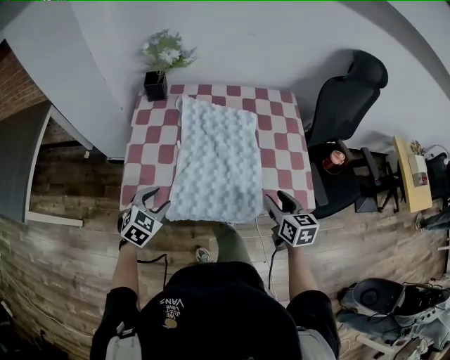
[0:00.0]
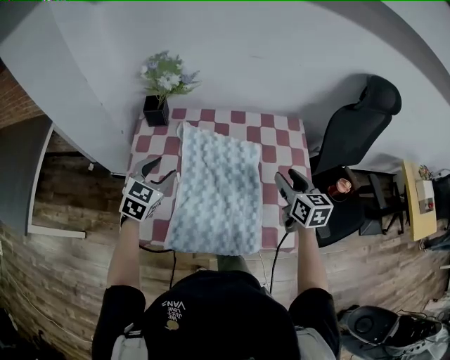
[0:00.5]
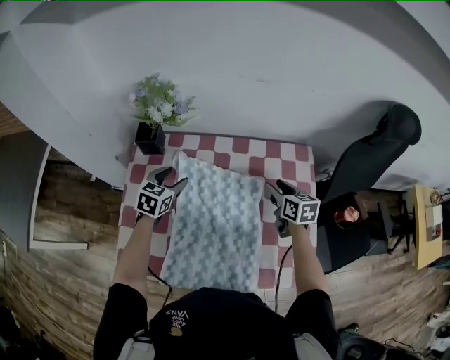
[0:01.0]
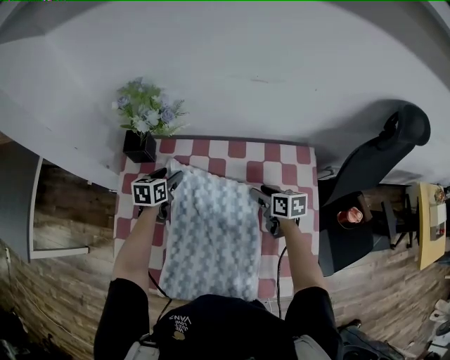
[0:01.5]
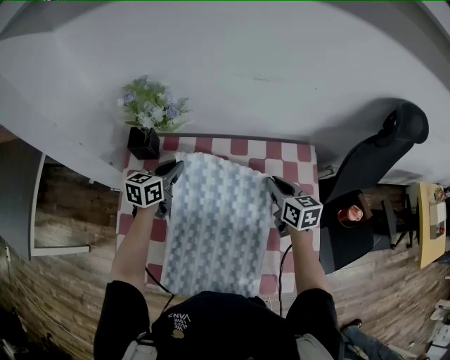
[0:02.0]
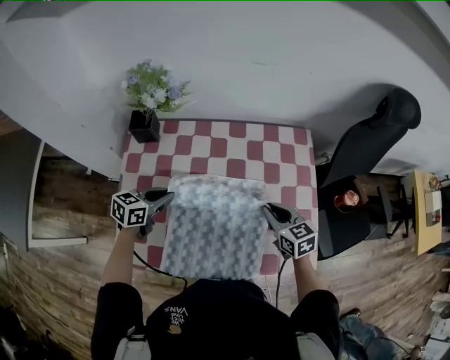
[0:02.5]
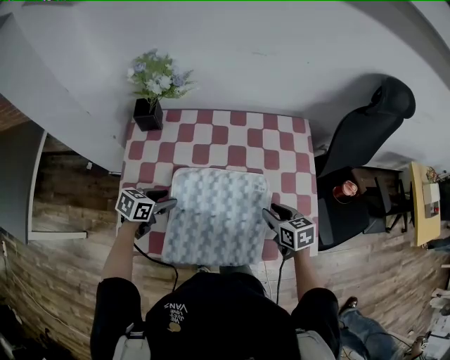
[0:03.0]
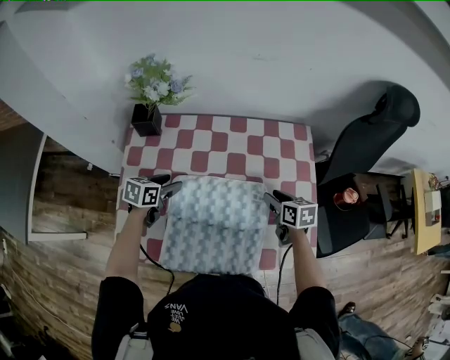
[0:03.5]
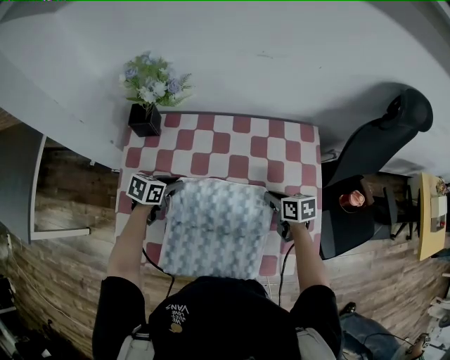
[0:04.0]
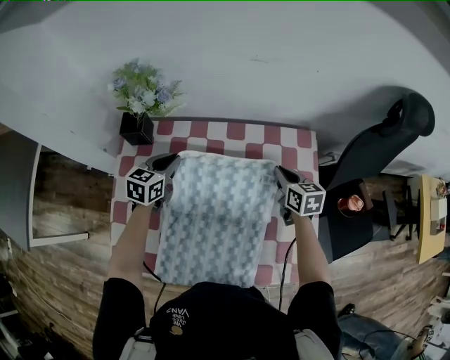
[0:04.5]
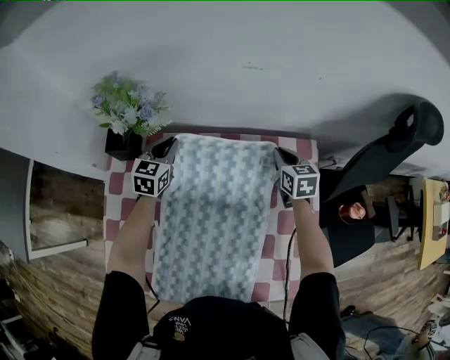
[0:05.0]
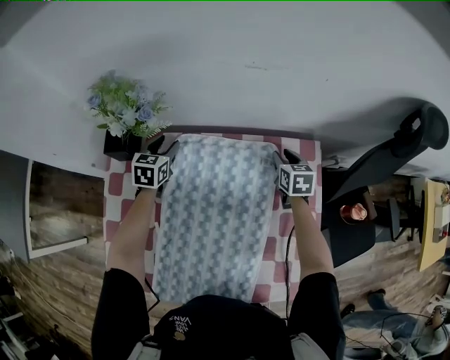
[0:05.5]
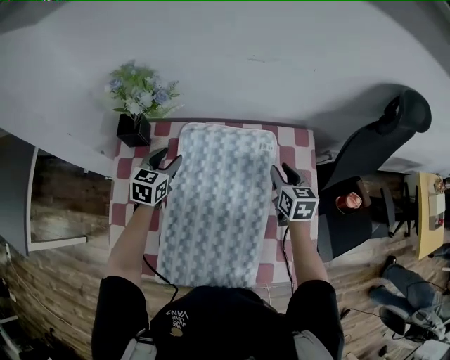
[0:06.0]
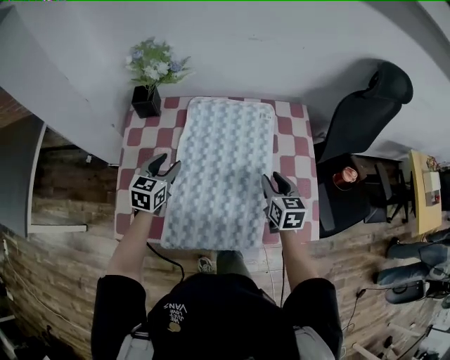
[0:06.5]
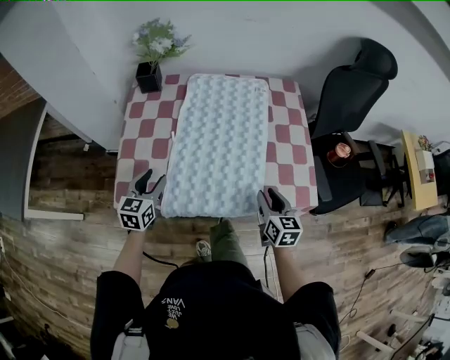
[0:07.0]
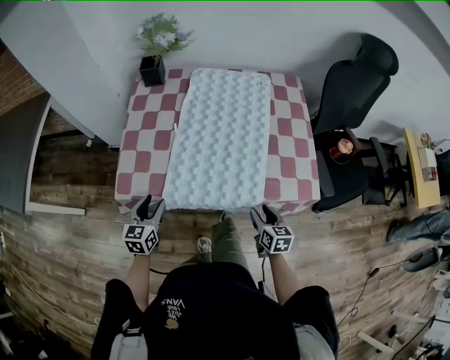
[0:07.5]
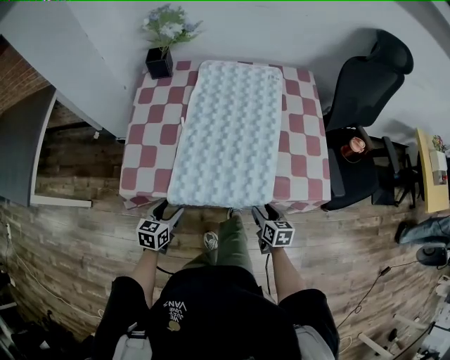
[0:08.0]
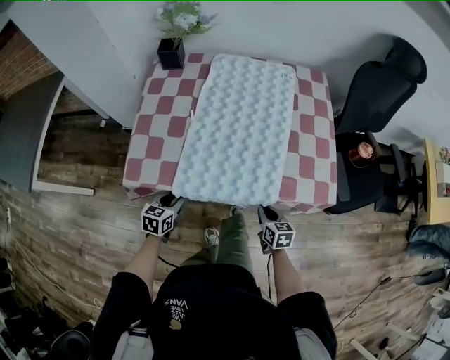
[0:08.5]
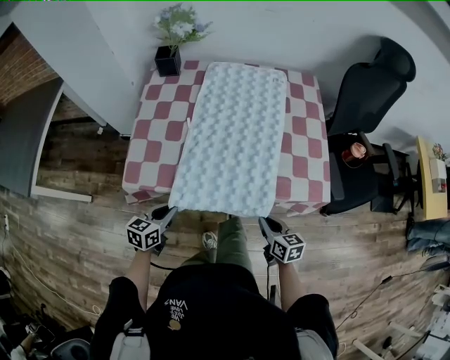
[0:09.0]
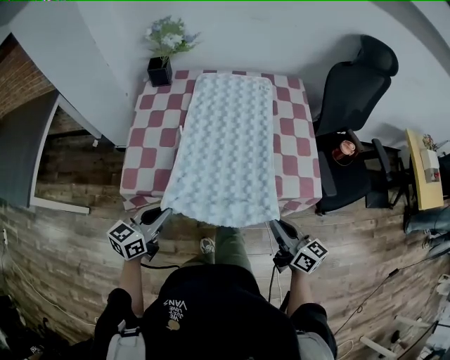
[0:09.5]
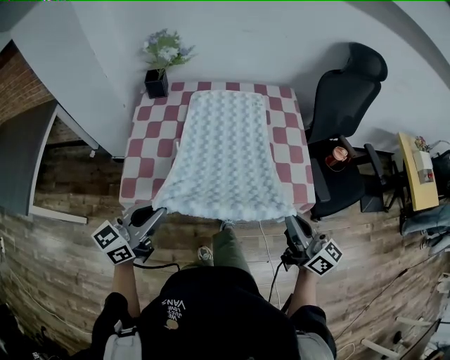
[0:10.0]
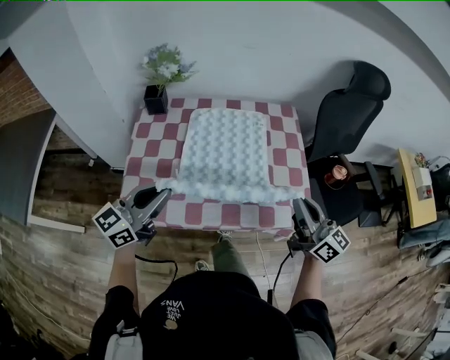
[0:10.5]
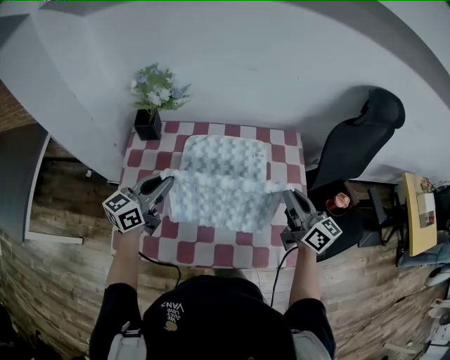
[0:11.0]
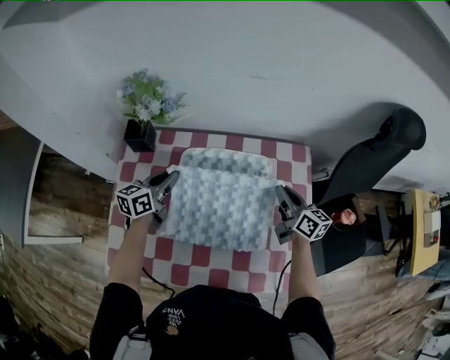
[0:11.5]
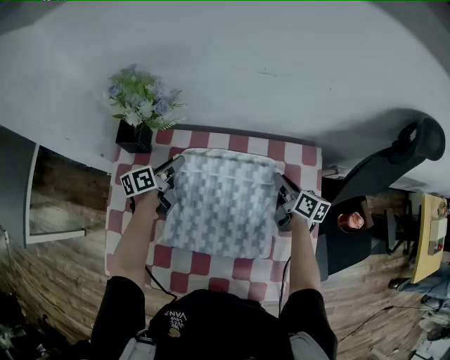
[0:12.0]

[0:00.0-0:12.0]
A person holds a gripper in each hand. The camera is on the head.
0:00.0 to 0:02.0: The two grippers go some 40 cm forward. The right gripper closes up. The left gripper rotates about 40 degrees, and closes its fingers.
0:02.0 to 0:04.0: The left gripper shifts roughly 15 cm backward and downward, and turns by approximately 30 degrees, while the right gripper heads downward and backward, covering approximately 15 cm, and rotates approximately 30 degrees.
0:04.0 to 0:06.0: Both grippers travel together forward and upward, roughly 15 cm. The right gripper rotates approximately 30 degrees, while the left gripper changes its angle by roughly 30 degrees.
0:06.0 to 0:08.0: Both grippers are carried backward, some 40 cm. The right gripper travels downward by some 20 cm.
0:08.0 to 0:10.0: Both grippers move upward, some 30 cm. The right gripper tilts its fingers some 50 degrees upward, and closes up. Meanwhile the left gripper points its fingers roughly 40 degrees further upward, and closes up.
0:10.0 to 0:12.0: Both grippers are carried forward, about 50 cm. The left gripper rotates approximately 50 degrees, and opens. The right gripper turns by about 30 degrees.

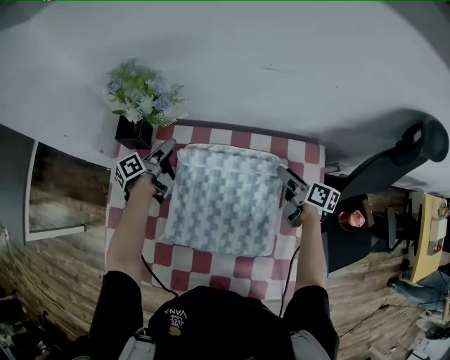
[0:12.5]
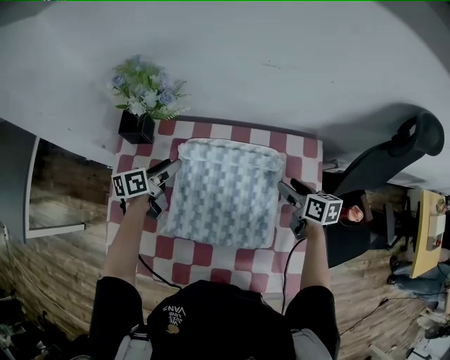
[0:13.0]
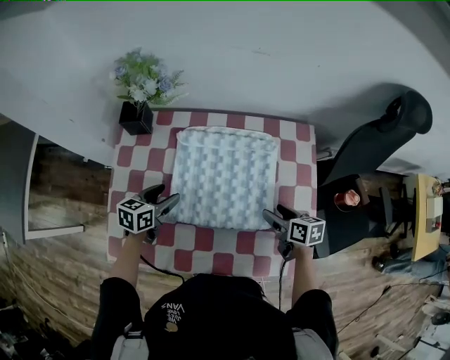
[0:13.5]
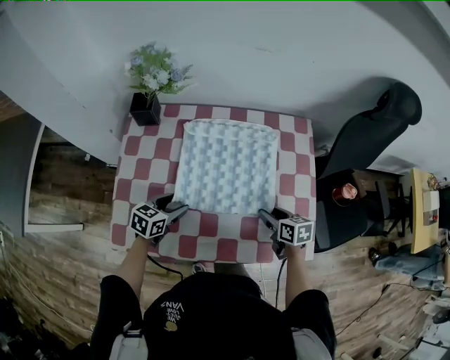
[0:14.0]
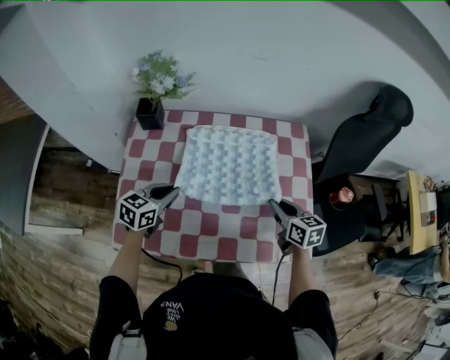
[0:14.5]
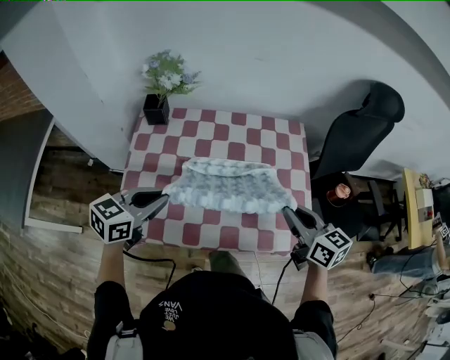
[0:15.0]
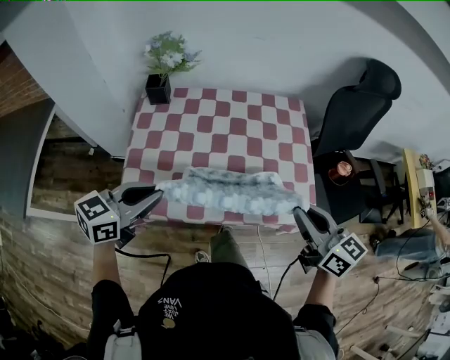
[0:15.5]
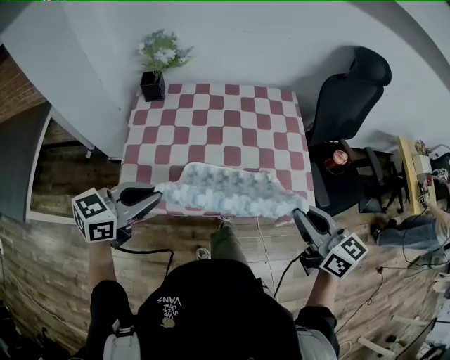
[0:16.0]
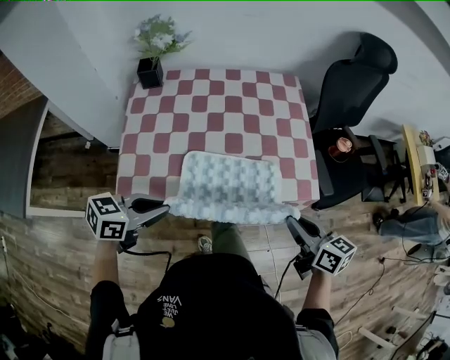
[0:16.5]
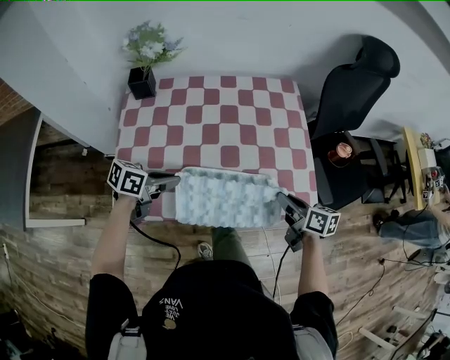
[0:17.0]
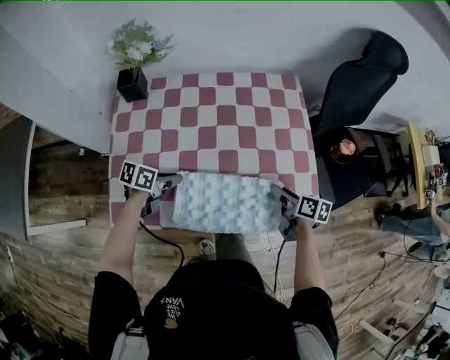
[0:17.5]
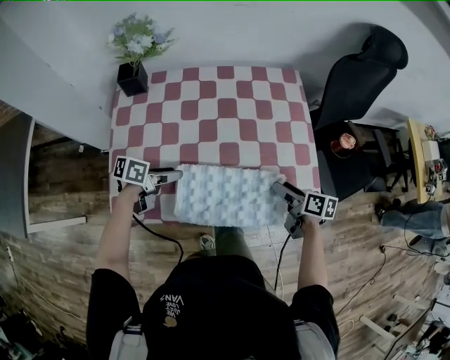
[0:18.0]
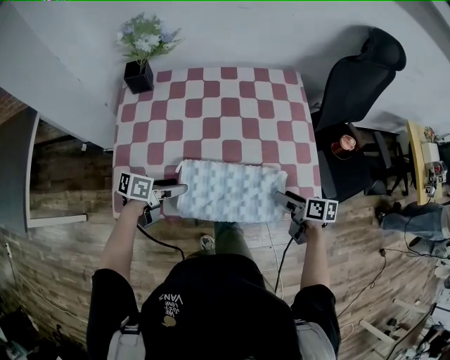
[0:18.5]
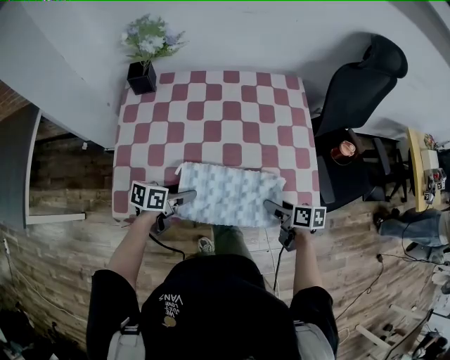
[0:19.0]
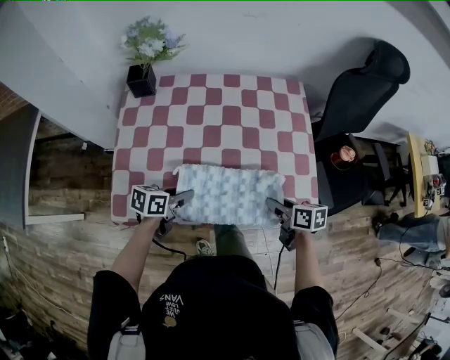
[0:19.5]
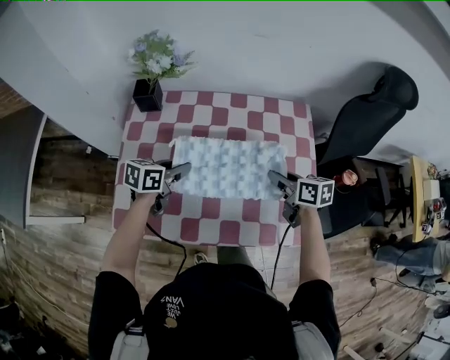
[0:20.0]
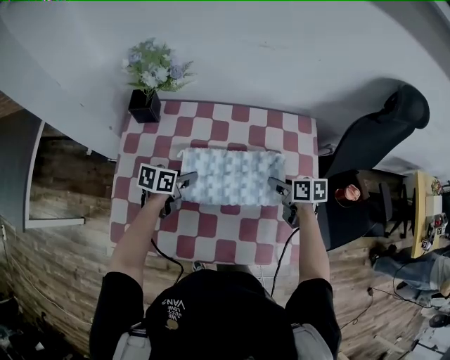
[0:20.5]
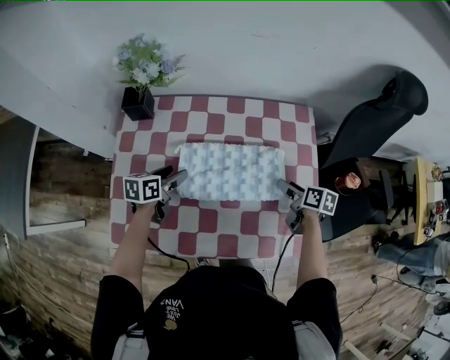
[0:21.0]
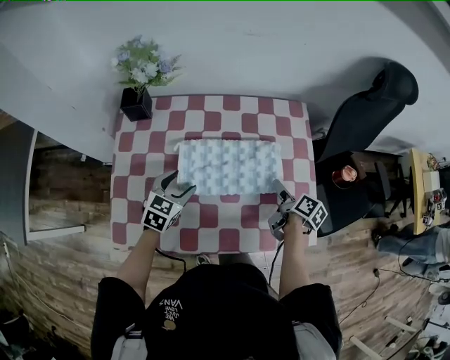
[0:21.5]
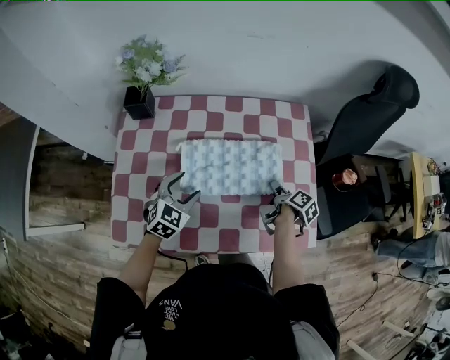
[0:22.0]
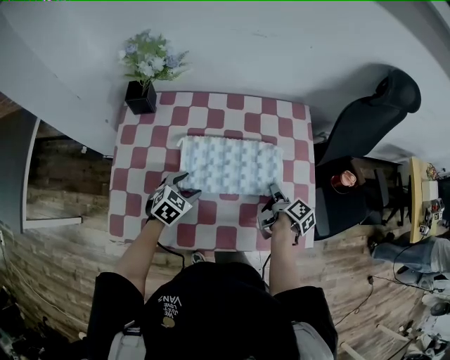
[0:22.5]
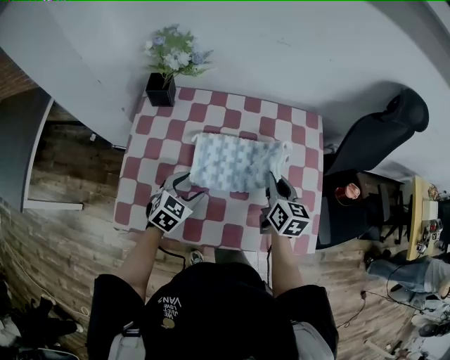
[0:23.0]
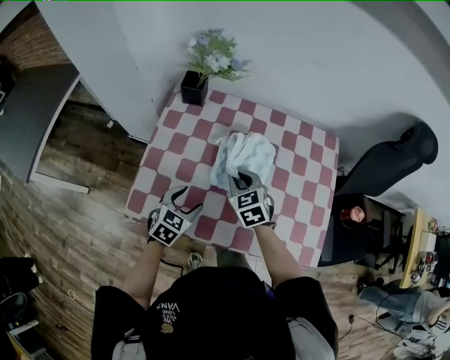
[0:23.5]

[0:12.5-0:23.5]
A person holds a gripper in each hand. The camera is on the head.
0:12.5 to 0:14.5: Both grippers travel together backward, about 25 cm. The right gripper rotates about 30 degrees, and closes. Meanwhile the left gripper rotates around the line of its fingers by roughly 70 degrees, clockwise from behind, and closes.
0:14.5 to 0:16.0: Both grippers move backward and upward, roughly 30 cm.
0:16.0 to 0:18.0: The two grippers go some 30 cm downward and forward. The right gripper rotates roughly 40 degrees, and opens, while the left gripper rolls counterclockwise, seen from behind, by roughly 40 degrees, and opens its fingers.
0:18.0 to 0:20.0: The right gripper shifts roughly 15 cm forward, to the left and upward, swivels approximately 20 degrees, and closes its fingers. The left gripper shifts about 10 cm forward and upward, rotates roughly 30 degrees, and closes up.
0:20.0 to 0:21.5: The right gripper travels downward and to the right by about 10 cm, rolls clockwise, seen from behind, by some 40 degrees, and opens, while the left gripper rotates about 30 degrees, and opens up.
0:21.5 to 0:23.5: The right gripper heads to the left, covering some 30 cm, rolls counterclockwise, seen from behind, by roughly 90 degrees, and closes. The left gripper heads backward and to the left, covering some 15 cm.

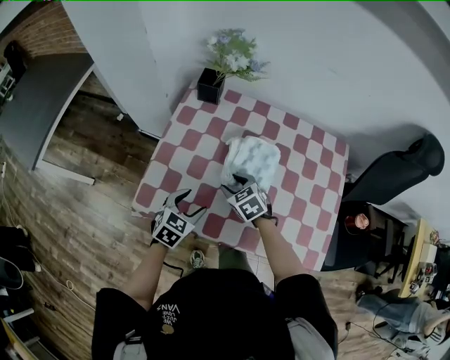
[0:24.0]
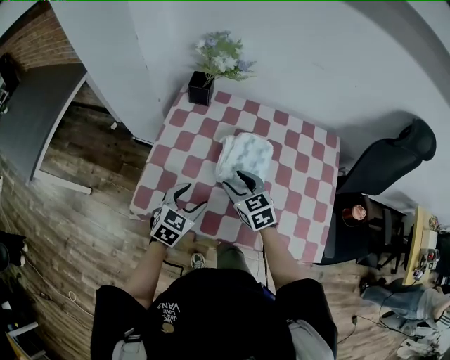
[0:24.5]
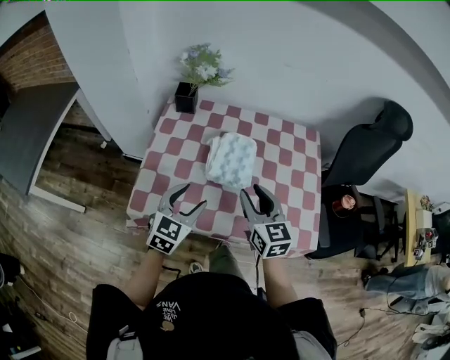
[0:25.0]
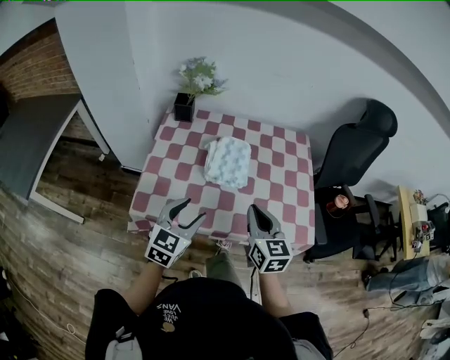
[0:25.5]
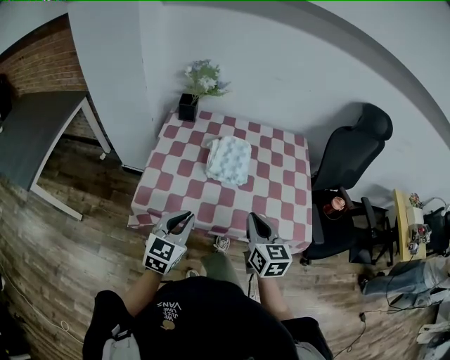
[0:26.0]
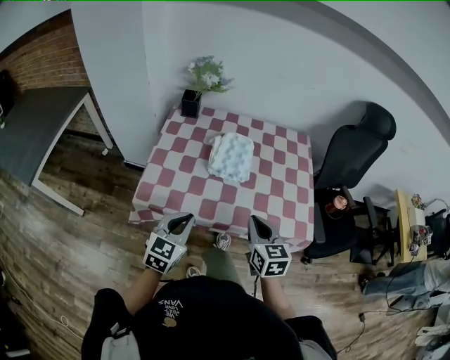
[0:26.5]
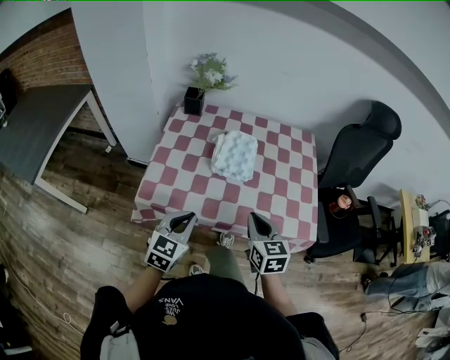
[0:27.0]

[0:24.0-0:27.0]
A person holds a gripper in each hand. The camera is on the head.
0:24.0 to 0:25.5: The right gripper is displaced upward, backward and to the right by about 25 cm, tilts its fingers roughly 30 degrees upward, and closes. The left gripper goes approximately 15 cm upward and backward, and swivels about 20 degrees.
0:25.5 to 0:27.0: The right gripper moves some 5 cm; the left gripper is displaced backward by about 5 cm, and closes its fingers.
